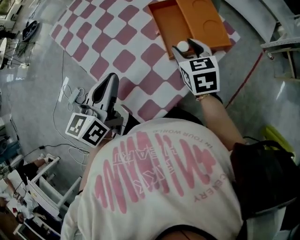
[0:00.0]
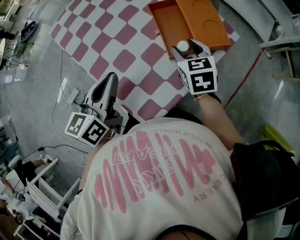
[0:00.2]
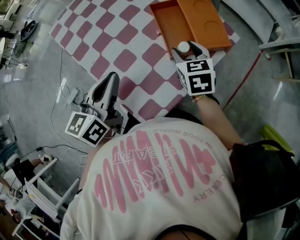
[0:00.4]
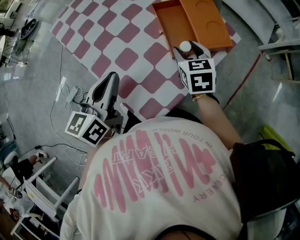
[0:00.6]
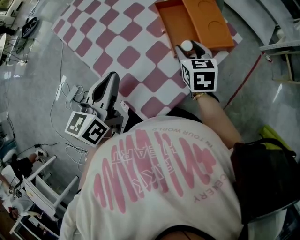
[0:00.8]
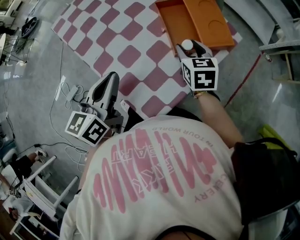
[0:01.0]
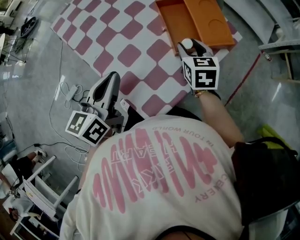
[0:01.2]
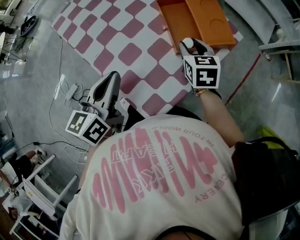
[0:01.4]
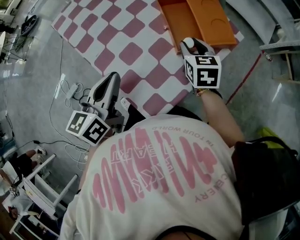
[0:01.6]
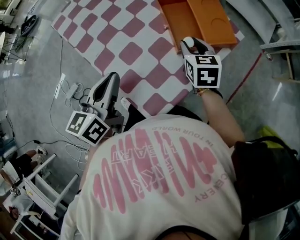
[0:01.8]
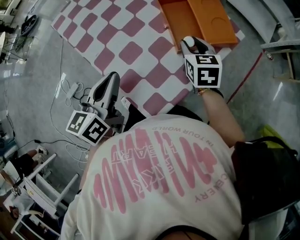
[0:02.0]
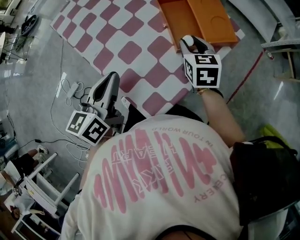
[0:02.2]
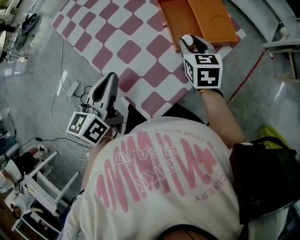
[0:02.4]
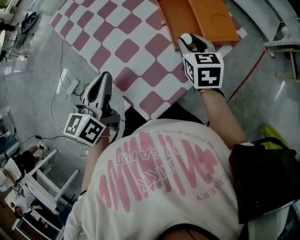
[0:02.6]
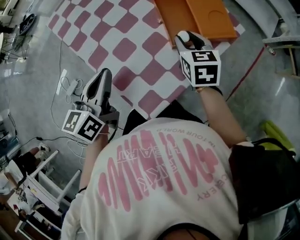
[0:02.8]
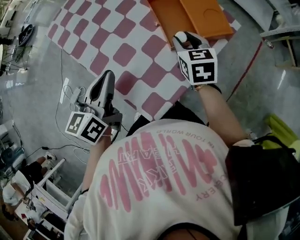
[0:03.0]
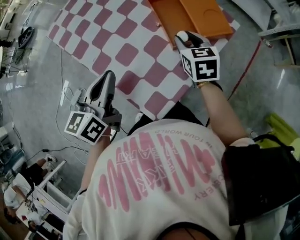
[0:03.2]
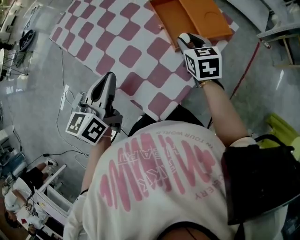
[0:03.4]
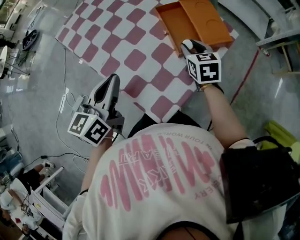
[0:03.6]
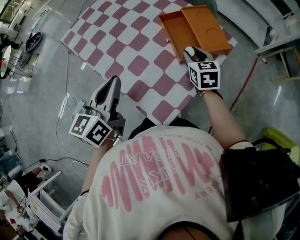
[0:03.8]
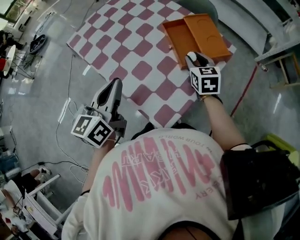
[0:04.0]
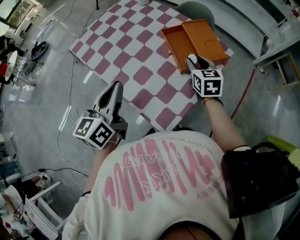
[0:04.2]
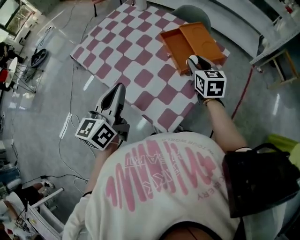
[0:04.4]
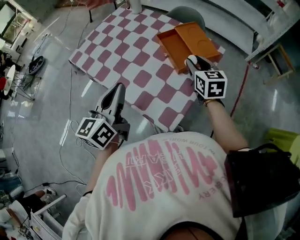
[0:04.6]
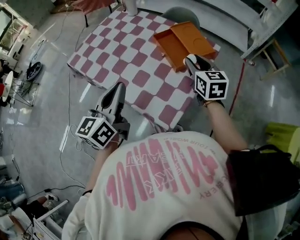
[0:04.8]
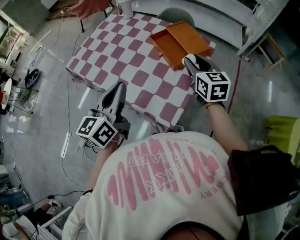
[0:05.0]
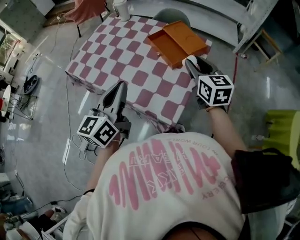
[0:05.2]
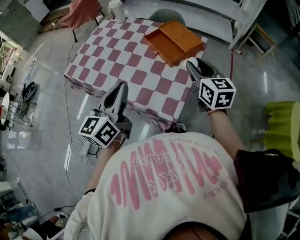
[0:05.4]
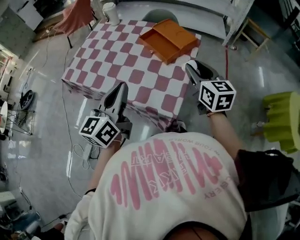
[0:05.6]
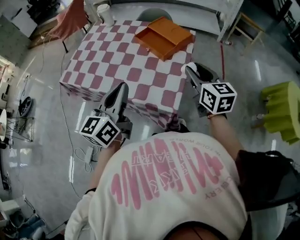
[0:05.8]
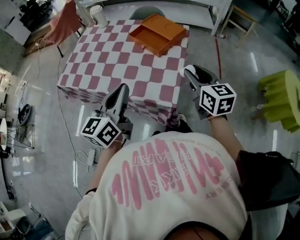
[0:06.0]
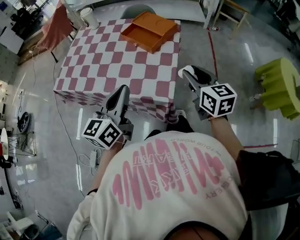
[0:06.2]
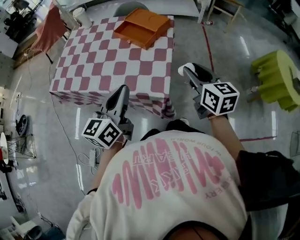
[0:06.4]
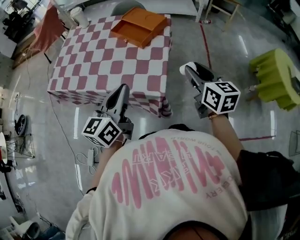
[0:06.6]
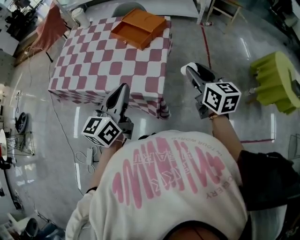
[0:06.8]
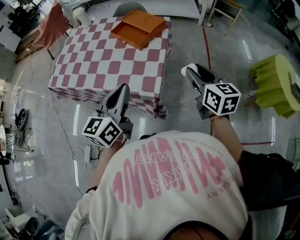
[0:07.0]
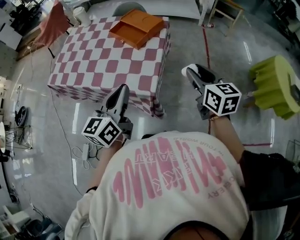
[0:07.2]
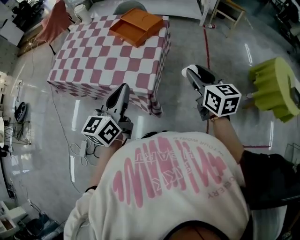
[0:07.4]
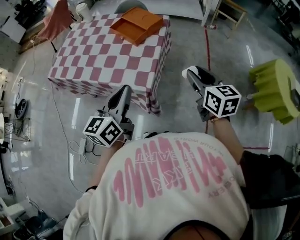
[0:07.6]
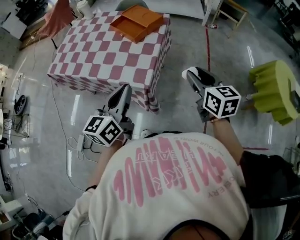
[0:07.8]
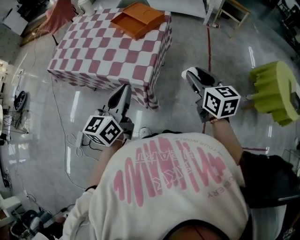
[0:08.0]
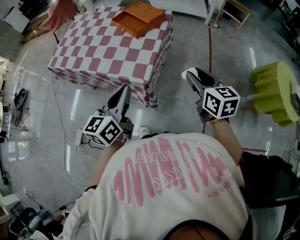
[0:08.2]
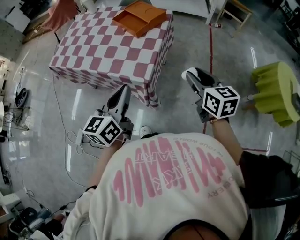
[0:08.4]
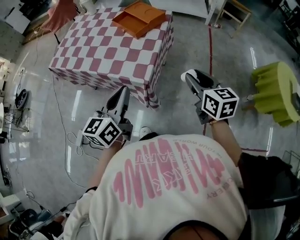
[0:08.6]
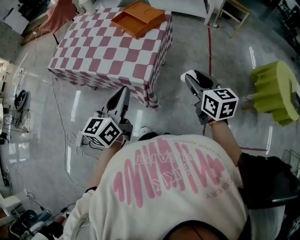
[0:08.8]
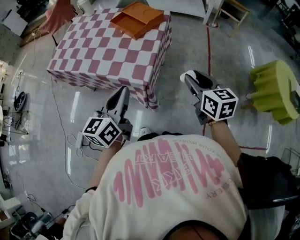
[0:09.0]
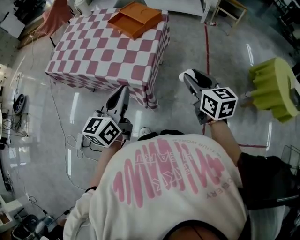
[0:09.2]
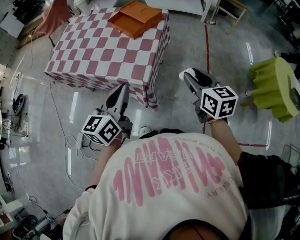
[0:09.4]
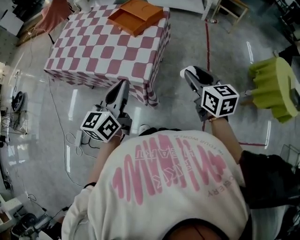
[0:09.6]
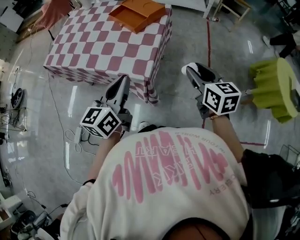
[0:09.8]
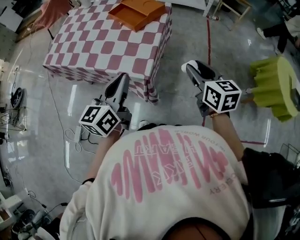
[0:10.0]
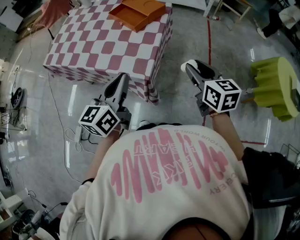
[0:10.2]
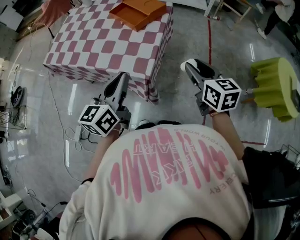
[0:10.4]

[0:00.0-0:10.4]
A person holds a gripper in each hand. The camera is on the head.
0:00.0 to 0:03.0: The grippers move only a little.
0:03.0 to 0:04.4: Both grippers move upward, about 10 cm.
0:04.4 to 0:06.0: The left gripper travels backward by some 10 cm, and turns by roughly 30 degrees; the right gripper travels backward by about 25 cm, and rotates some 20 degrees.
0:06.0 to 0:07.4: The grippers both shift to the right and backward by some 15 cm.
0:07.4 to 0:09.0: The right gripper shifts by approximately 5 cm. The left gripper shifts by approximately 5 cm.
0:09.0 to 0:10.4: There are only small adjustments of the grippers.

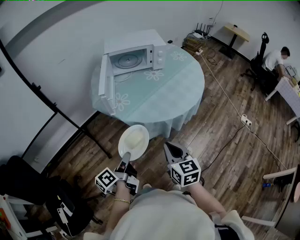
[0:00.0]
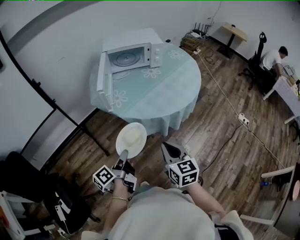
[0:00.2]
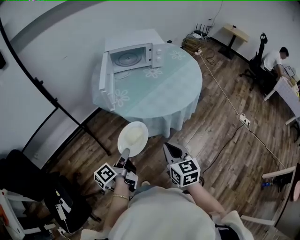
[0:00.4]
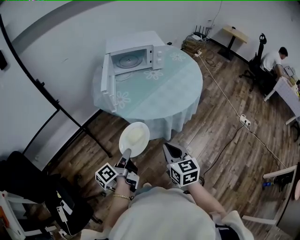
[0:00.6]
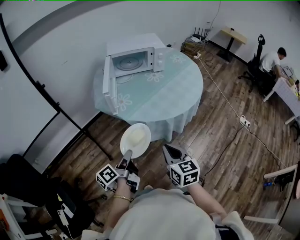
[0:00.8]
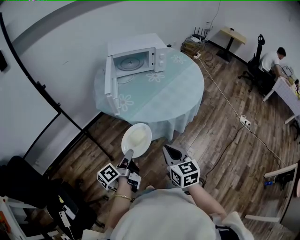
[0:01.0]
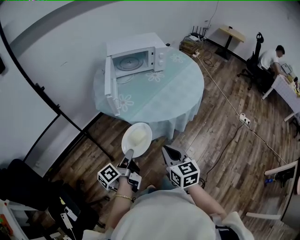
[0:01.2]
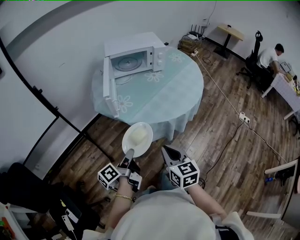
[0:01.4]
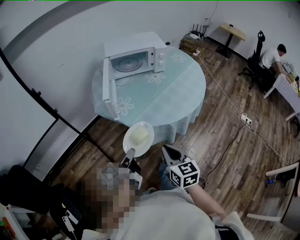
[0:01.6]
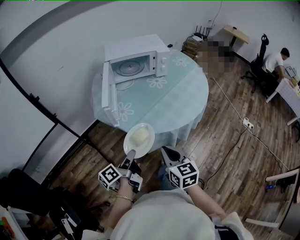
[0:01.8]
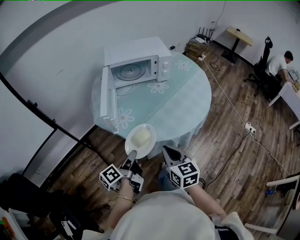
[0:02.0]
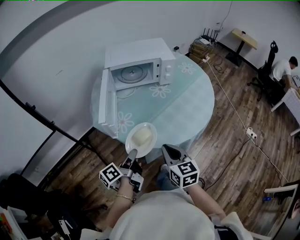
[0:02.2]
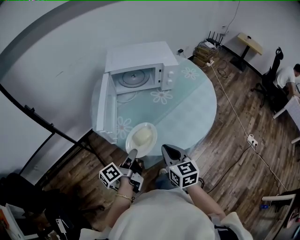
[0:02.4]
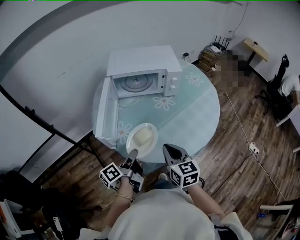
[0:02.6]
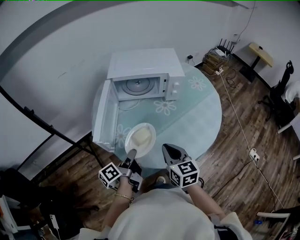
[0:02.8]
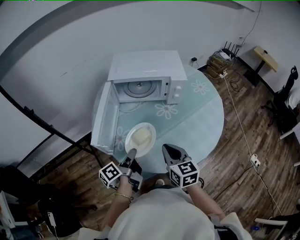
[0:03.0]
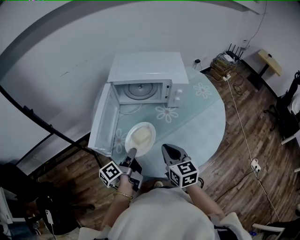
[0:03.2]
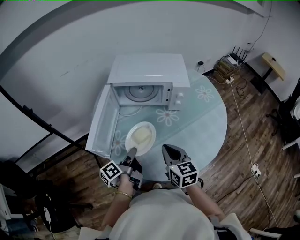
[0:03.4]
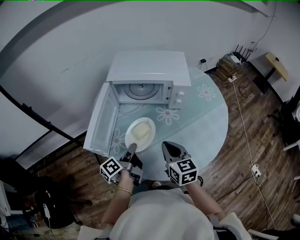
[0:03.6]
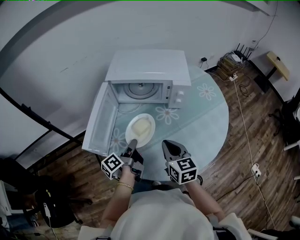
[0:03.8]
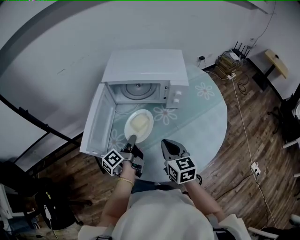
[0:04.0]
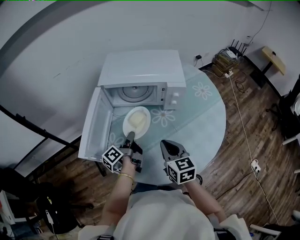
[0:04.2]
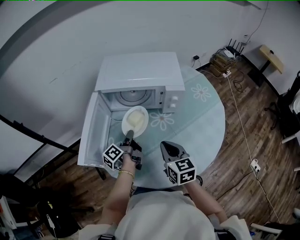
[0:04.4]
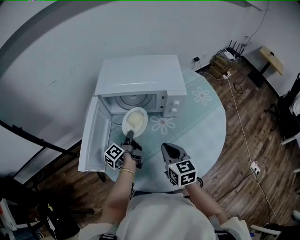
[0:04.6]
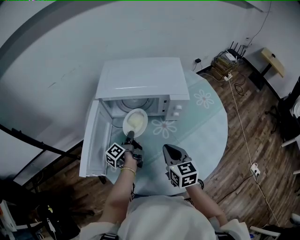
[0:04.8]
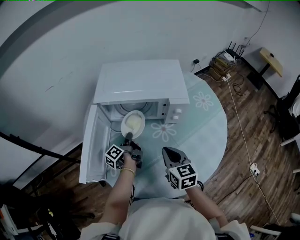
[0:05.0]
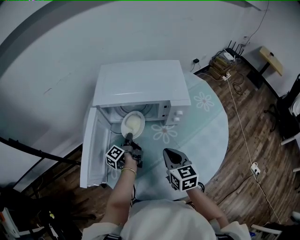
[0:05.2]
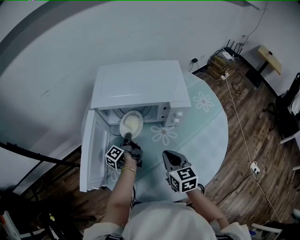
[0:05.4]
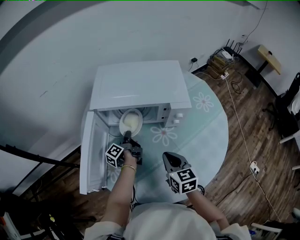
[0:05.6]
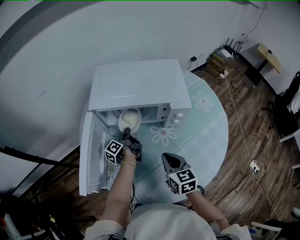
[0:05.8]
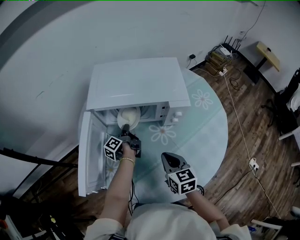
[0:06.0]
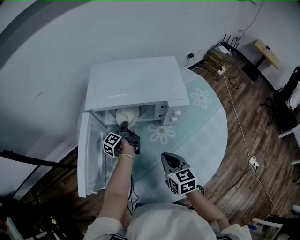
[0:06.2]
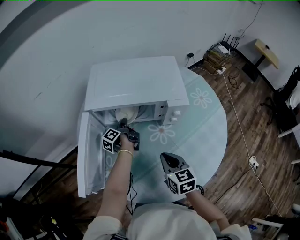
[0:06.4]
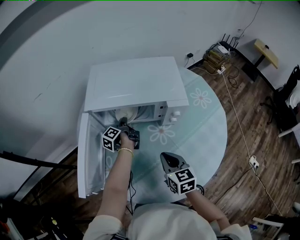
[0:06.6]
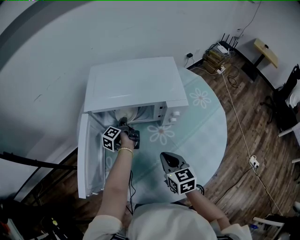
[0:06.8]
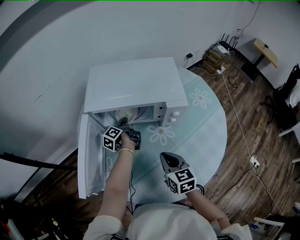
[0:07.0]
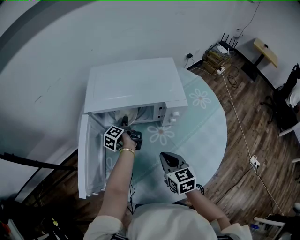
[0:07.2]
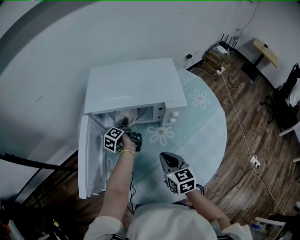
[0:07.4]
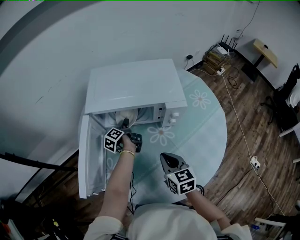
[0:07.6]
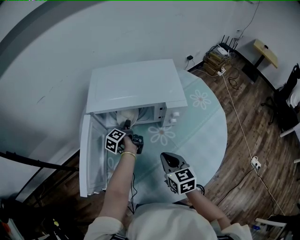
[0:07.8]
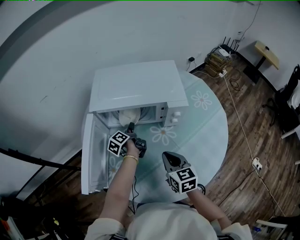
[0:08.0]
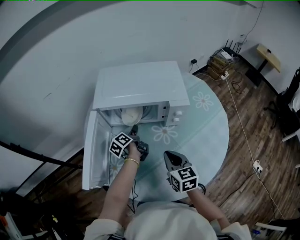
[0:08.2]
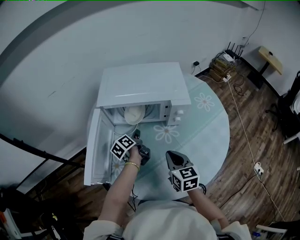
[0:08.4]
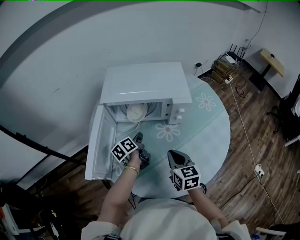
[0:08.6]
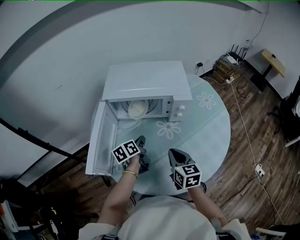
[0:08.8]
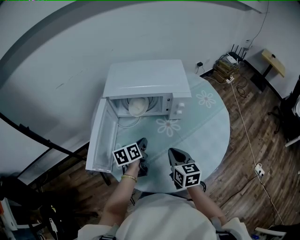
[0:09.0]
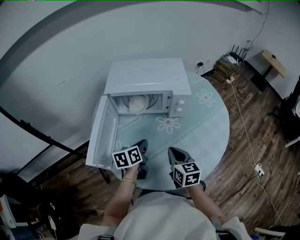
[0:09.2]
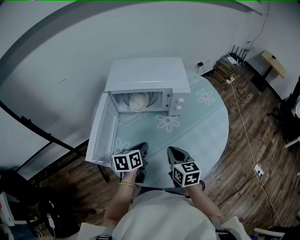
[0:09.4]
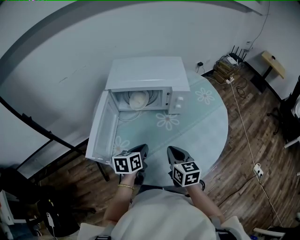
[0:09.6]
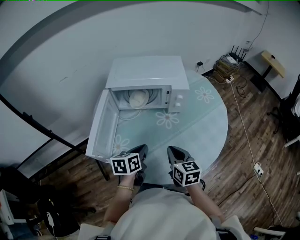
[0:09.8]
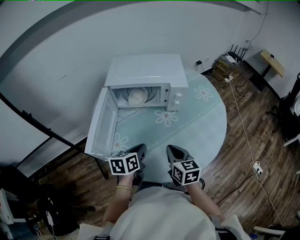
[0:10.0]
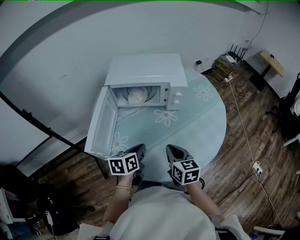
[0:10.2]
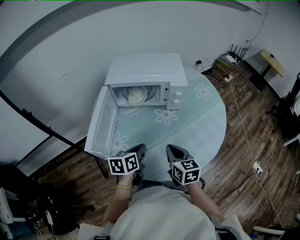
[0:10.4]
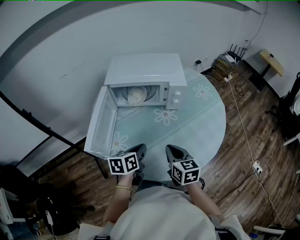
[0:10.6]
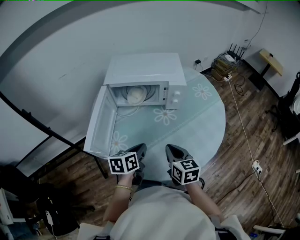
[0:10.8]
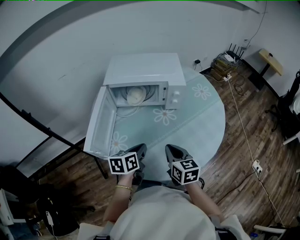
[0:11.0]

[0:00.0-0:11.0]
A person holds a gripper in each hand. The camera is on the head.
0:00.0 to 0:01.6: The right gripper moves approximately 5 cm.
0:01.6 to 0:03.2: The right gripper changes place by approximately 35 cm.
0:03.2 to 0:04.8: The right gripper shifts by approximately 15 cm.
0:07.8 to 0:09.4: The right gripper shifts by roughly 10 cm.

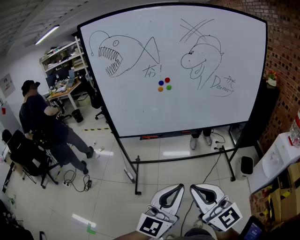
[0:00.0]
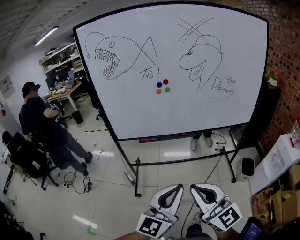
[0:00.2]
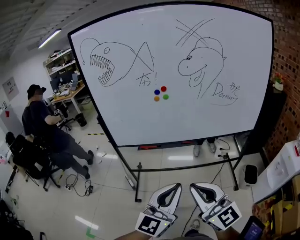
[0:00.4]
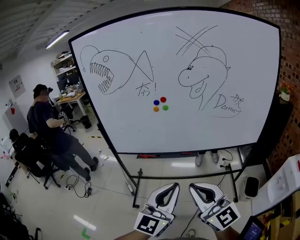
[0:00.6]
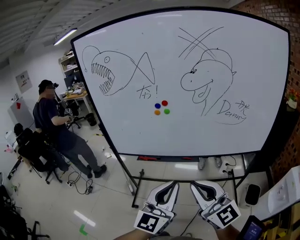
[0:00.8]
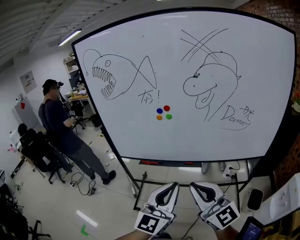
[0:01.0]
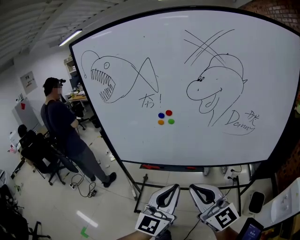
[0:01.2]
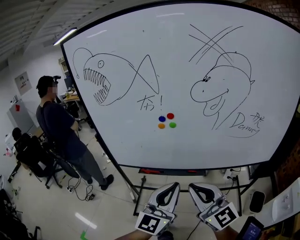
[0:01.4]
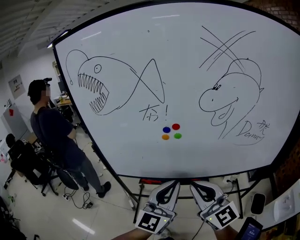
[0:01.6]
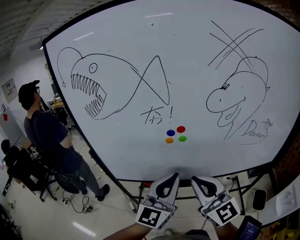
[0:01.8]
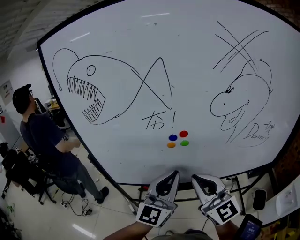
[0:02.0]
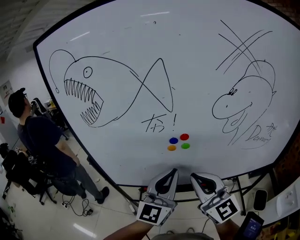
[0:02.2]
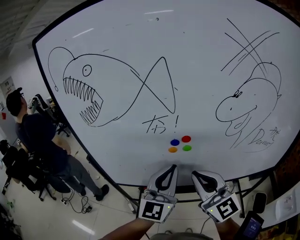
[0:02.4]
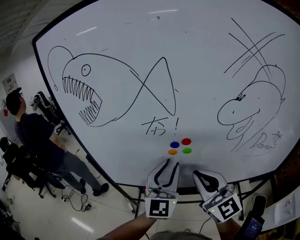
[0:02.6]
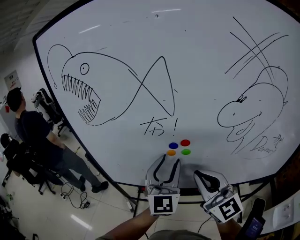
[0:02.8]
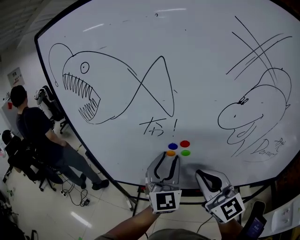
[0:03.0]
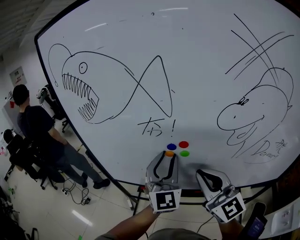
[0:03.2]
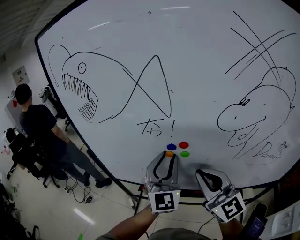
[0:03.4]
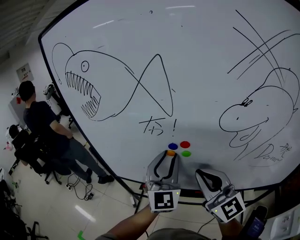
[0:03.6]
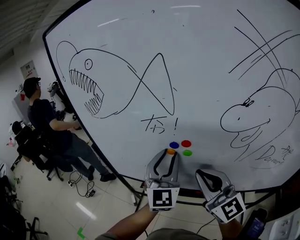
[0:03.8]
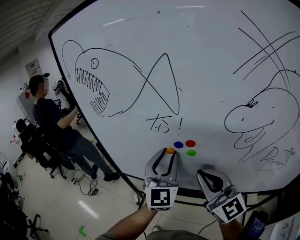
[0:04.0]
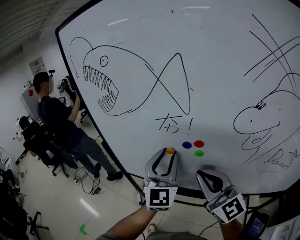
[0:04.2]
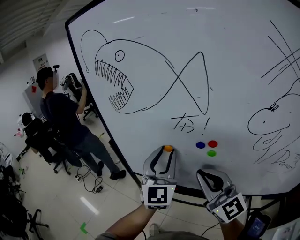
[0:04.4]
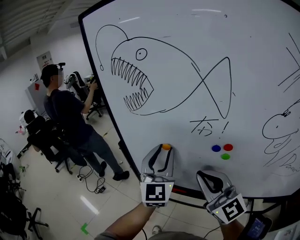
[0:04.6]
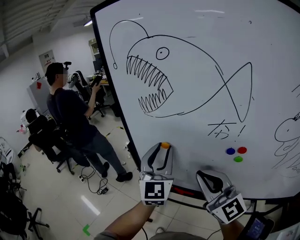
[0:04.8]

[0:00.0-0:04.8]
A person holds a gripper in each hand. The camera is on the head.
0:00.0 to 0:01.6: Both grippers travel together forward, some 35 cm.
0:01.6 to 0:03.2: Both grippers move forward, roughly 15 cm. The left gripper rotates approximately 40 degrees, and opens.
0:03.2 to 0:04.8: The grippers both shift to the left by roughly 20 cm.
